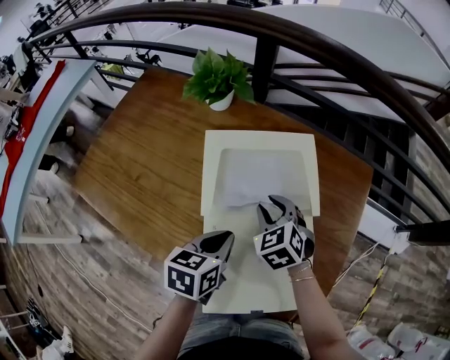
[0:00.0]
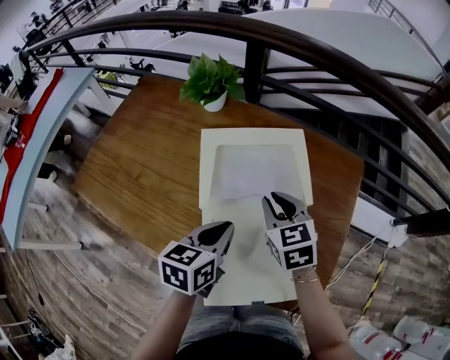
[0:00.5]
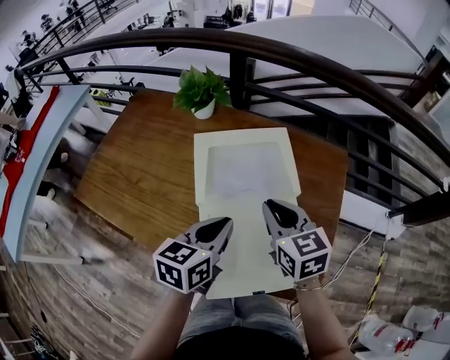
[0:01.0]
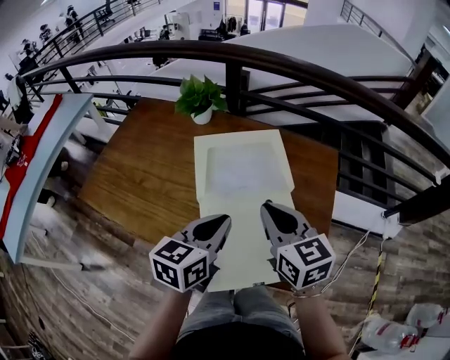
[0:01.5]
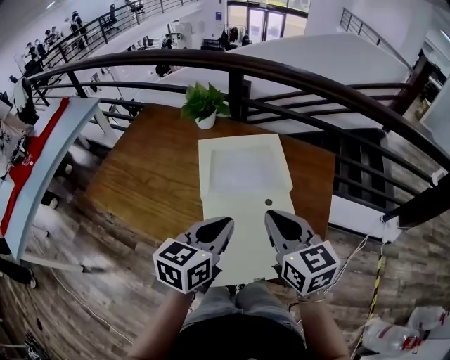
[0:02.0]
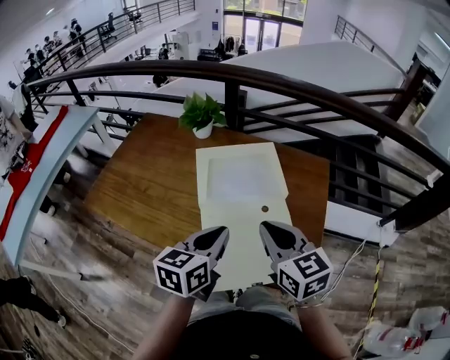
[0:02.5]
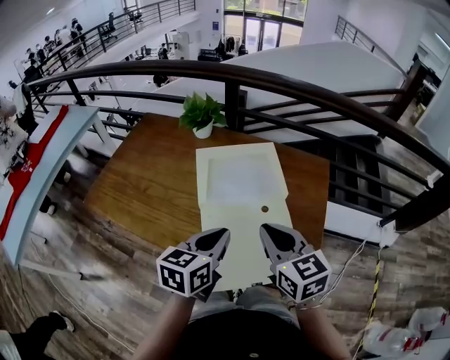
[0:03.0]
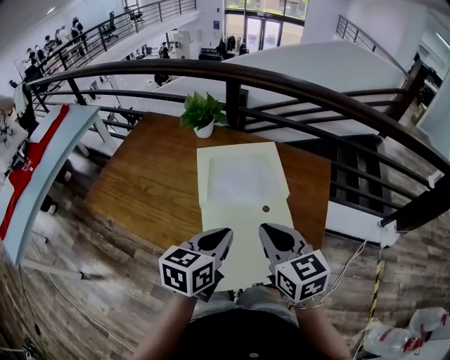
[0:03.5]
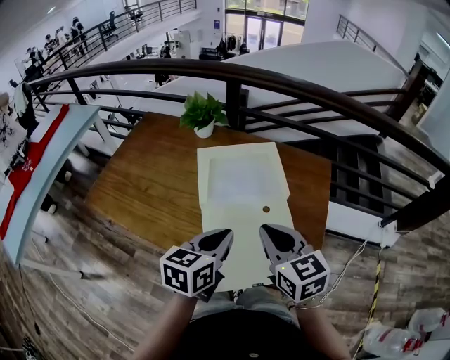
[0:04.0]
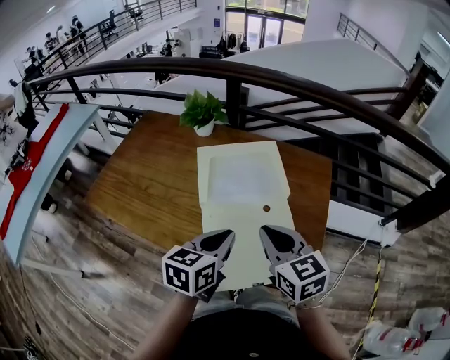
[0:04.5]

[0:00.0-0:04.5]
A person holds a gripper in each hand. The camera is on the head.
0:00.0 to 0:02.0: The left gripper moves upward and backward, roughly 15 cm, and swivels some 30 degrees. Meanwhile the right gripper travels upward and backward by approximately 25 cm, tilts its fingers some 30 degrees upward, and closes.
0:02.0 to 0:04.5: There are only small adjustments of the grippers.

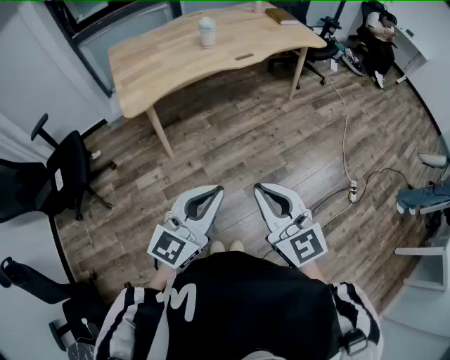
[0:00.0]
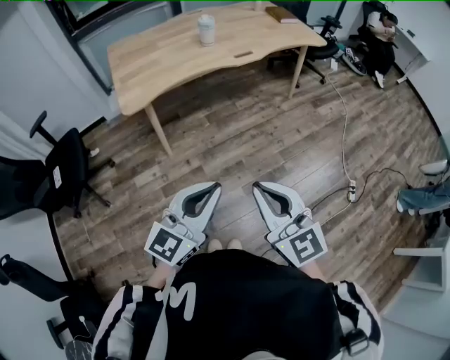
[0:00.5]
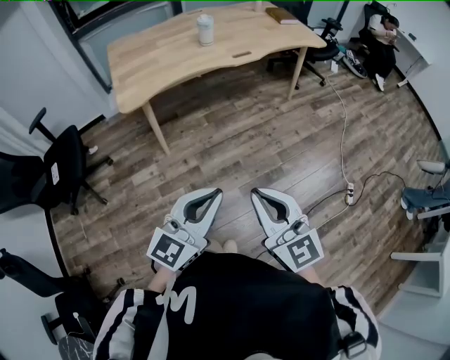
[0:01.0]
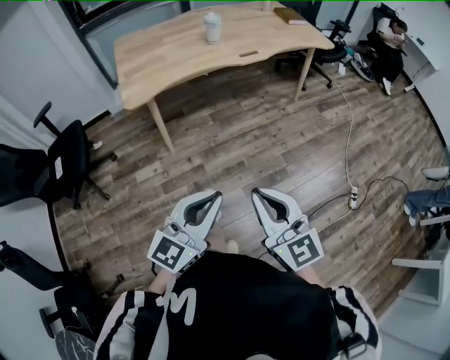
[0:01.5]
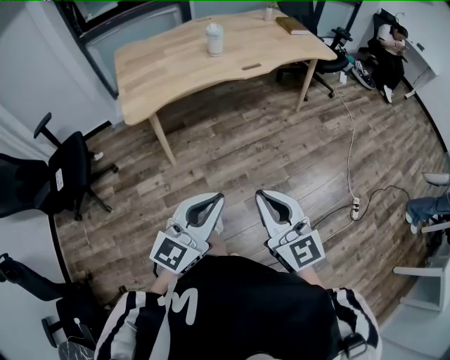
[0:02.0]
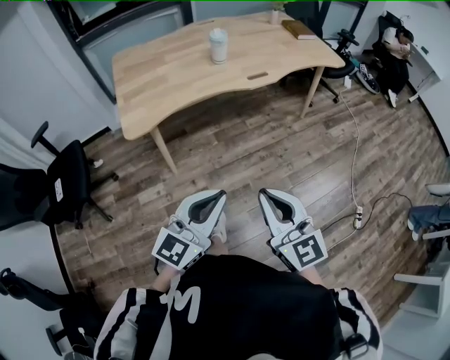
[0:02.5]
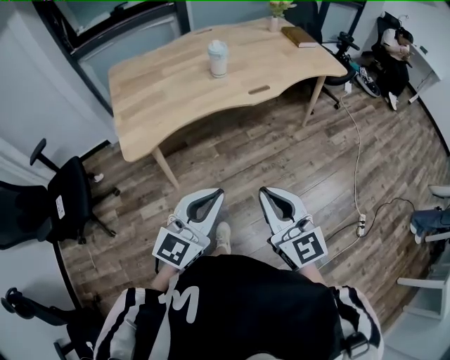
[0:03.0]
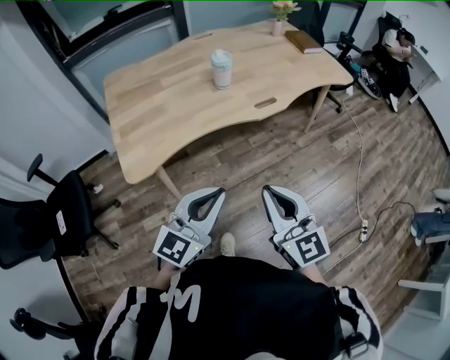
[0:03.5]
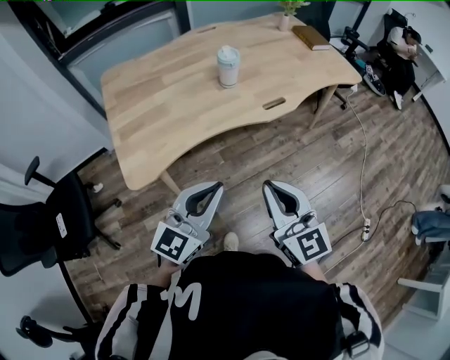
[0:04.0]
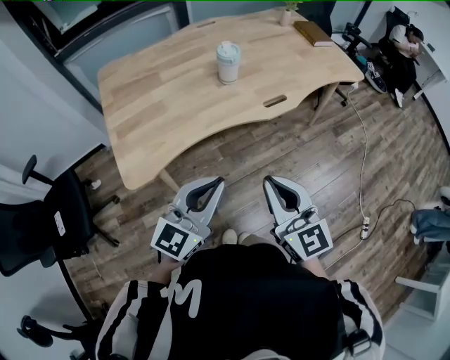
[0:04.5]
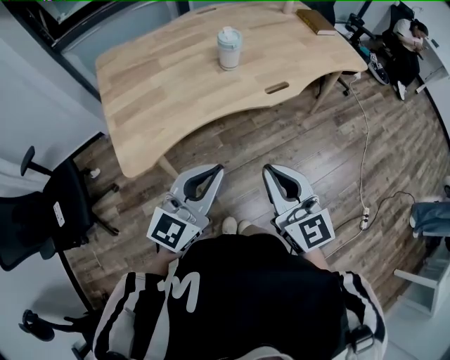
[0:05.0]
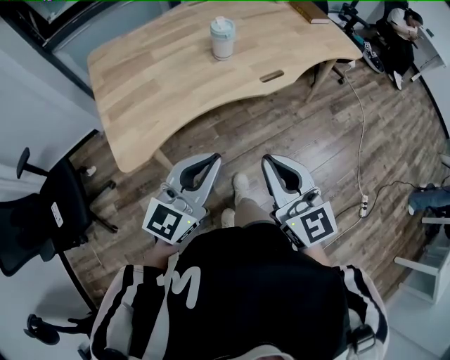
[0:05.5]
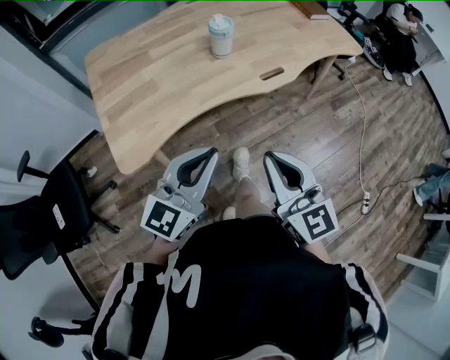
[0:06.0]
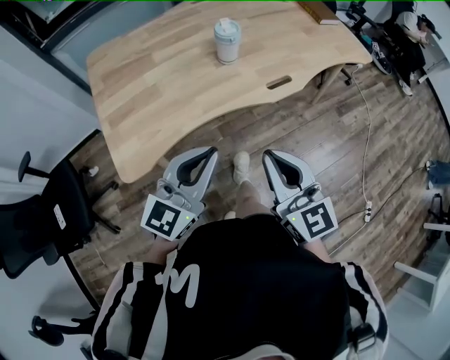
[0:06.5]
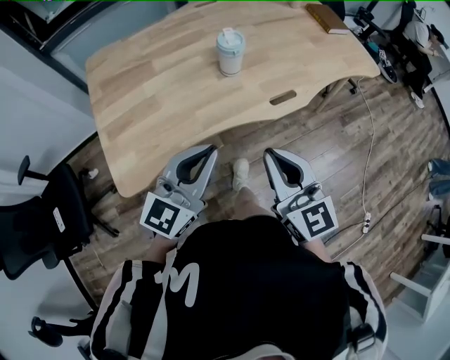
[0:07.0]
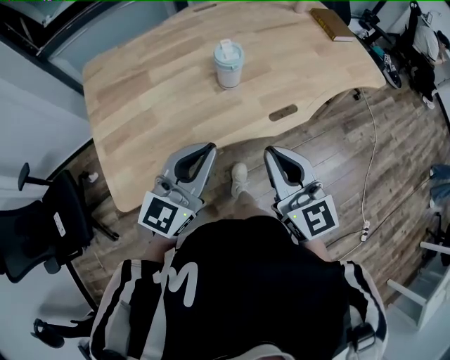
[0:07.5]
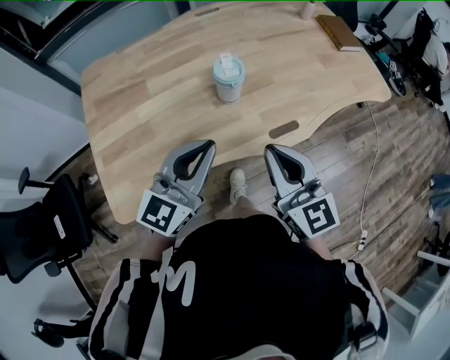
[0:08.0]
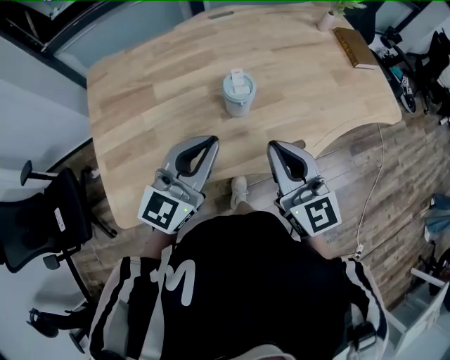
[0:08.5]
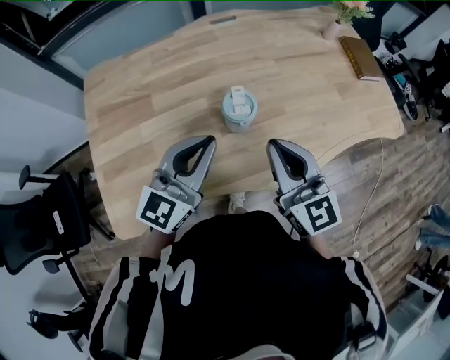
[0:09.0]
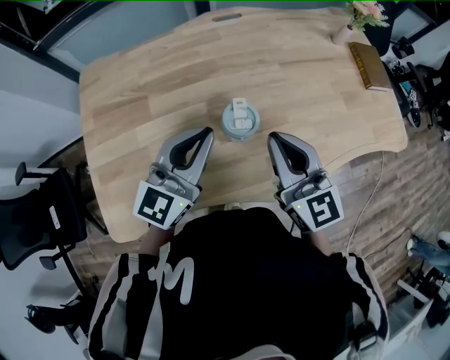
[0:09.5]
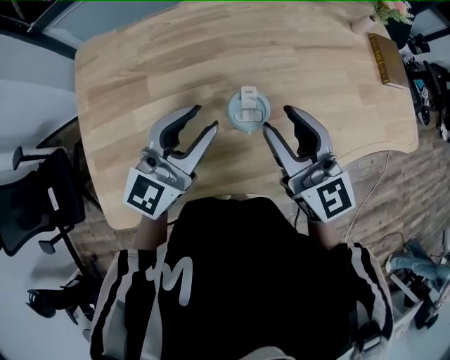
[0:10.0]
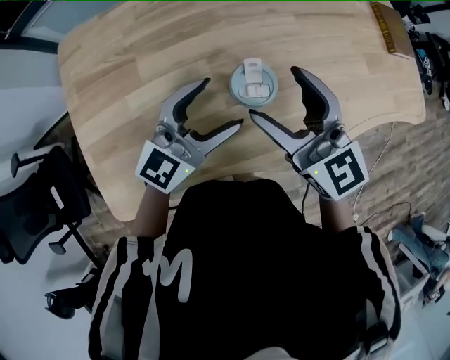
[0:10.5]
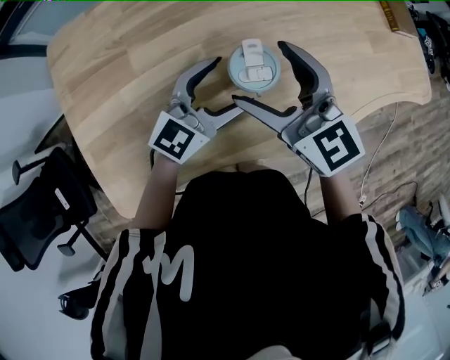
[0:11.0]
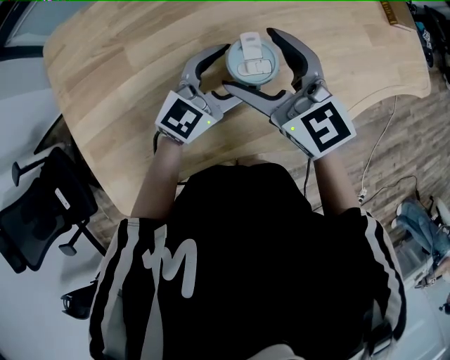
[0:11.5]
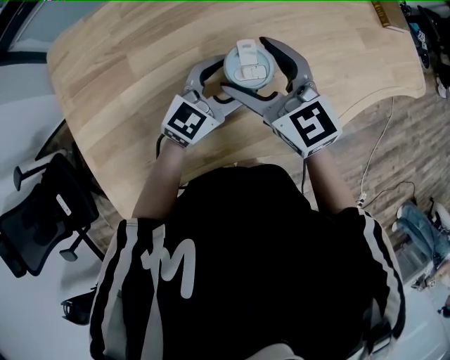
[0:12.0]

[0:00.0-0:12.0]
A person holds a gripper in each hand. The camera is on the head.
0:00.0 to 0:02.0: The left gripper changes place by some 5 cm; the right gripper moves forward, roughly 5 cm.
0:02.0 to 0:04.0: The grippers both shift forward by about 35 cm.
0:04.0 to 0:06.0: The grippers make only small movements.
0:06.0 to 0:08.0: Both grippers travel together forward, roughly 25 cm.
0:08.0 to 0:10.0: Both grippers move forward, approximately 20 cm.
0:10.0 to 0:12.0: The right gripper is displaced downward and to the left by some 10 cm, and opens up, while the left gripper heads downward and to the right, covering about 15 cm, rotates roughly 20 degrees, and opens up.

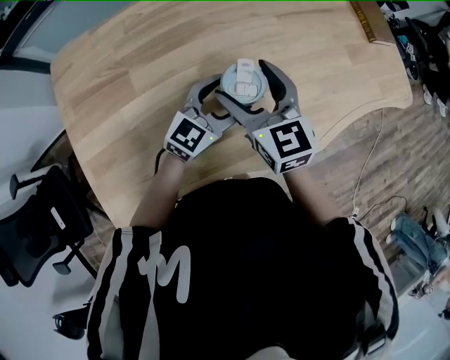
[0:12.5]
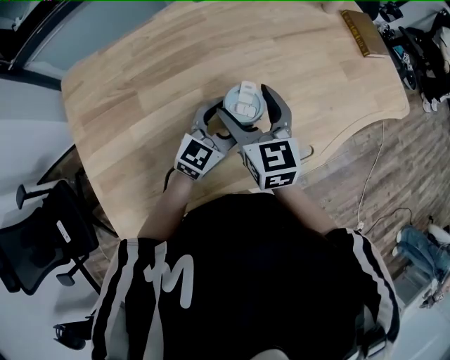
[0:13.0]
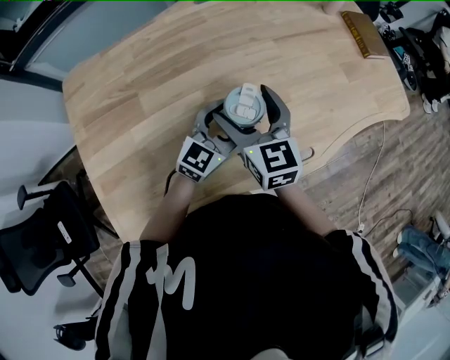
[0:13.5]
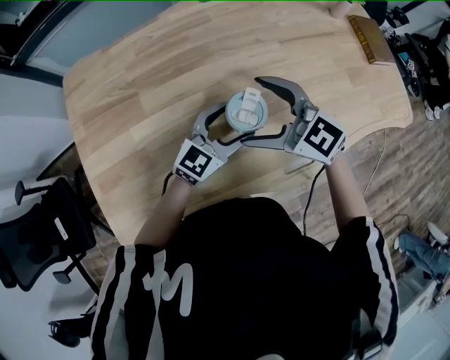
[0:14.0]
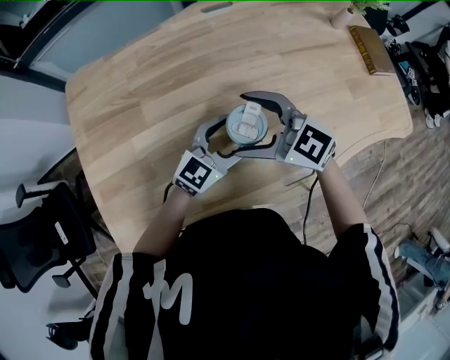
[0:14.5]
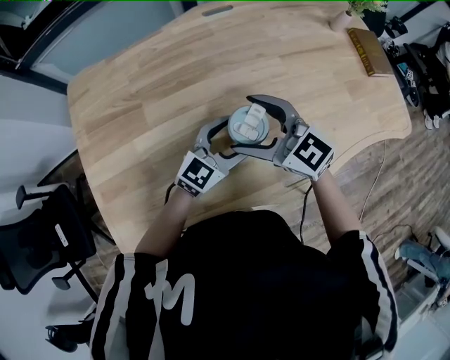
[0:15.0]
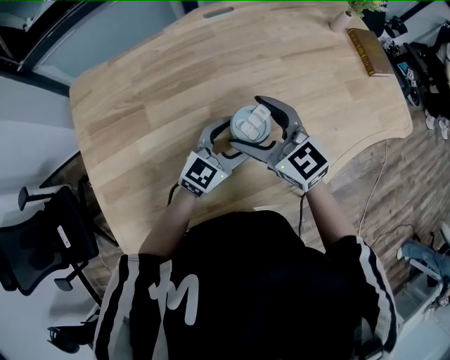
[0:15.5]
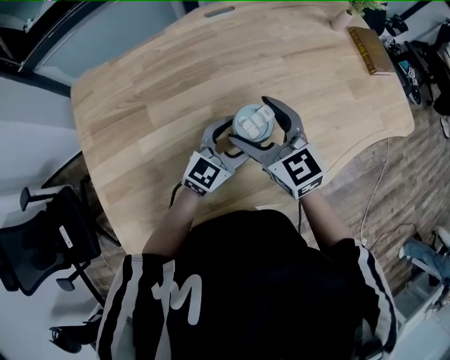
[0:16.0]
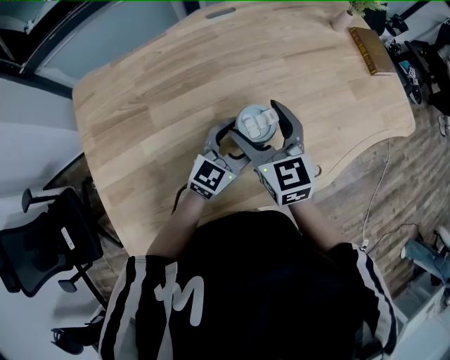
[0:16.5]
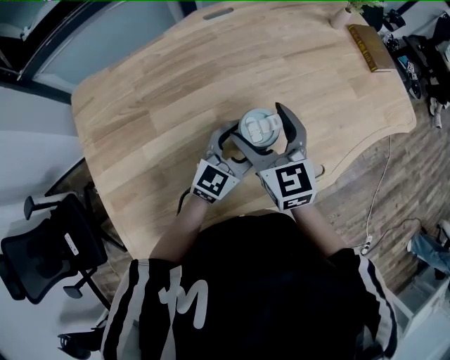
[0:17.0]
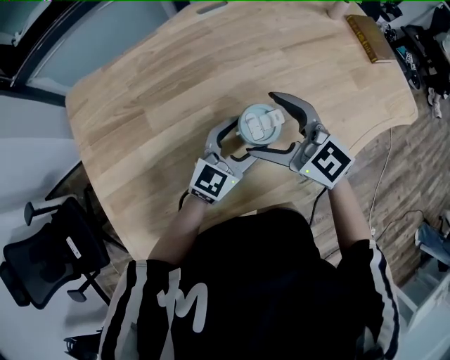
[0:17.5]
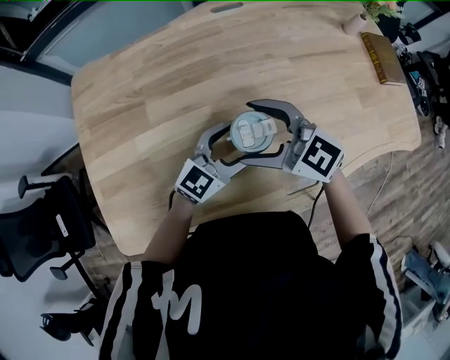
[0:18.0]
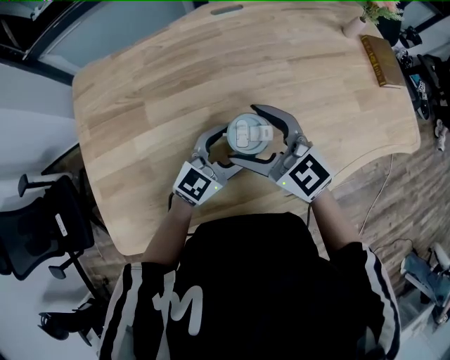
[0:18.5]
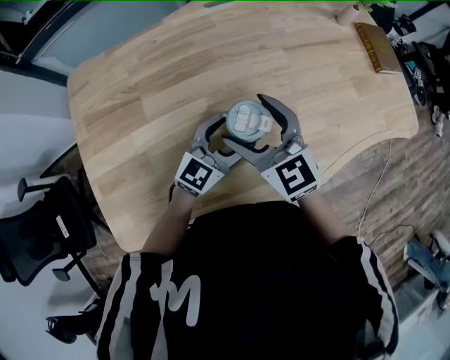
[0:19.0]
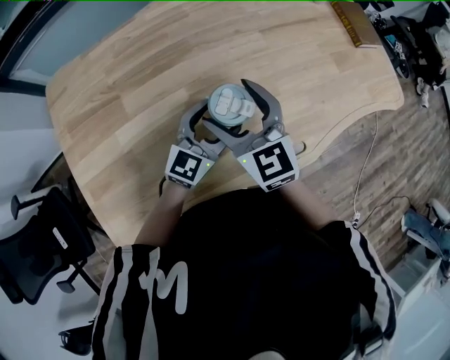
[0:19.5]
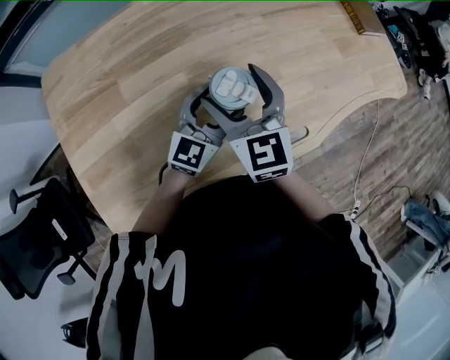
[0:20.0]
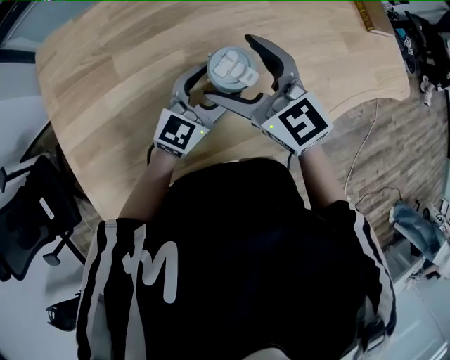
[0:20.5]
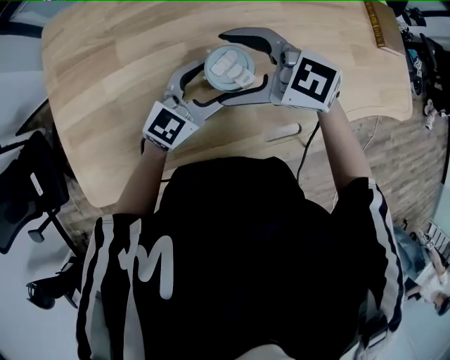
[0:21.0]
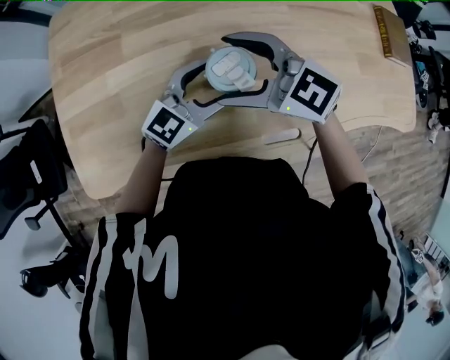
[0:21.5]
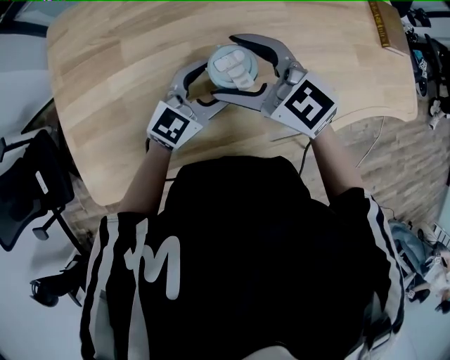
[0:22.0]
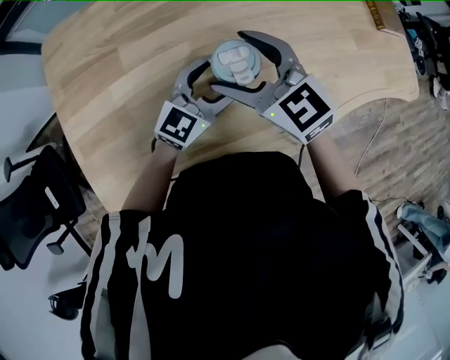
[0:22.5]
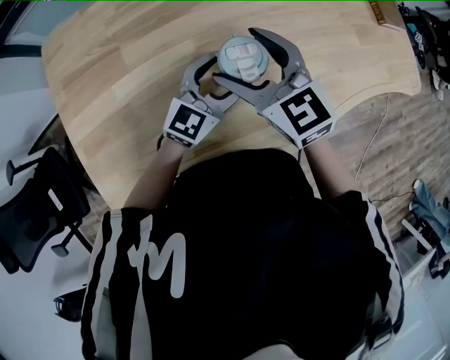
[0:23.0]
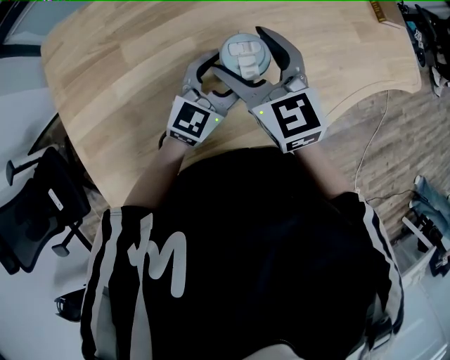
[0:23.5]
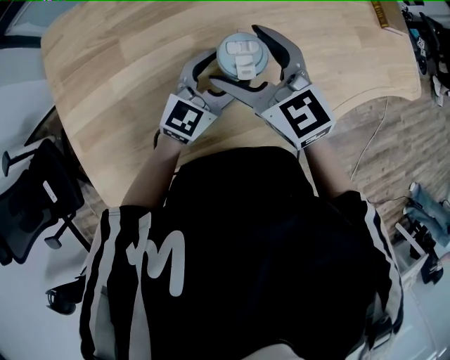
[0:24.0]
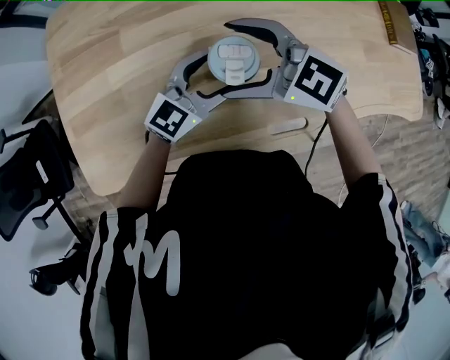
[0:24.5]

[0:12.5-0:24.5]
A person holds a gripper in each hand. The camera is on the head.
0:12.5 to 0:14.5: The right gripper rotates roughly 50 degrees.
0:14.5 to 0:16.5: The right gripper turns by approximately 50 degrees.
0:16.5 to 0:18.5: The right gripper rotates approximately 40 degrees.
0:22.5 to 0:24.5: The right gripper rotates roughly 30 degrees.
